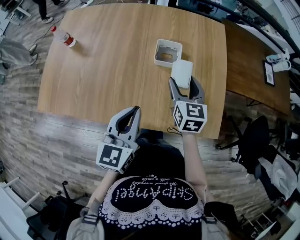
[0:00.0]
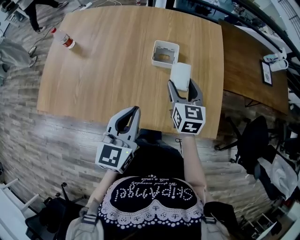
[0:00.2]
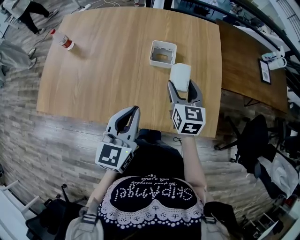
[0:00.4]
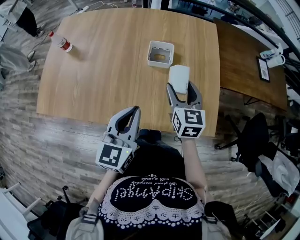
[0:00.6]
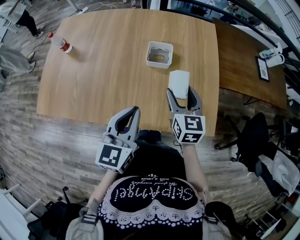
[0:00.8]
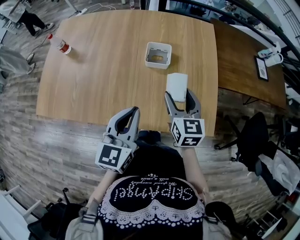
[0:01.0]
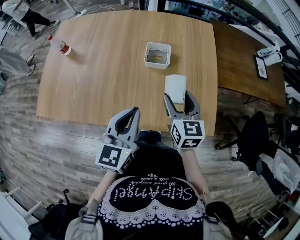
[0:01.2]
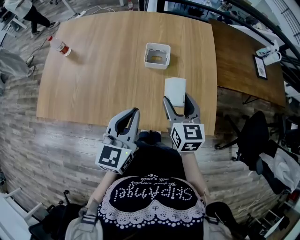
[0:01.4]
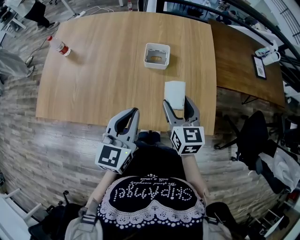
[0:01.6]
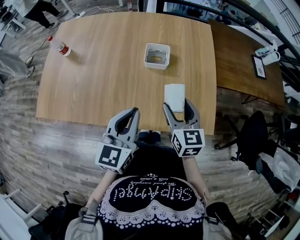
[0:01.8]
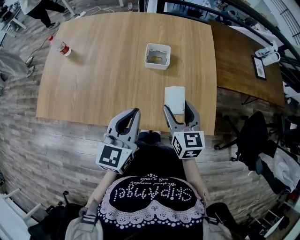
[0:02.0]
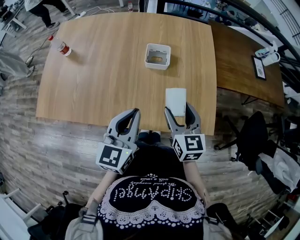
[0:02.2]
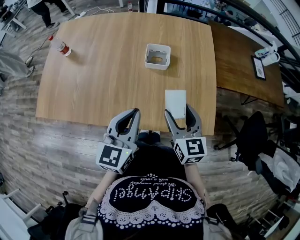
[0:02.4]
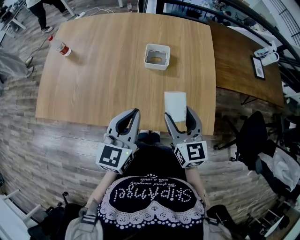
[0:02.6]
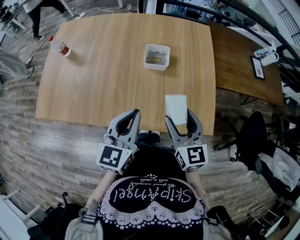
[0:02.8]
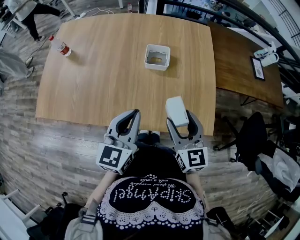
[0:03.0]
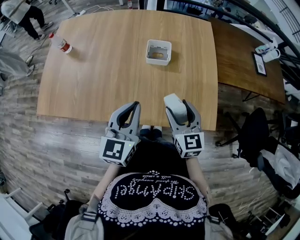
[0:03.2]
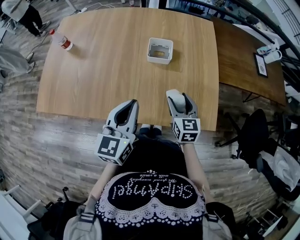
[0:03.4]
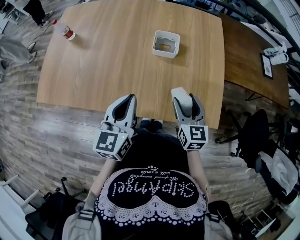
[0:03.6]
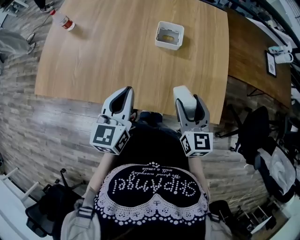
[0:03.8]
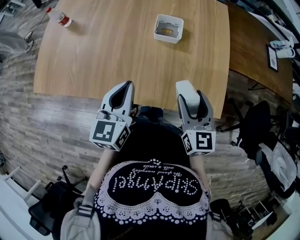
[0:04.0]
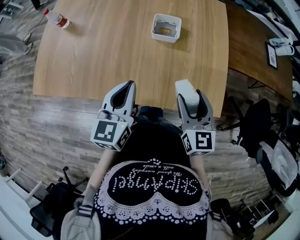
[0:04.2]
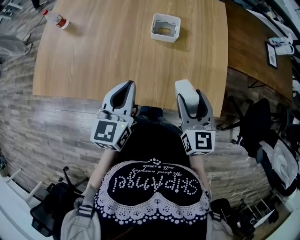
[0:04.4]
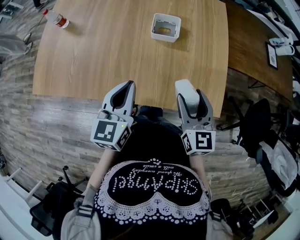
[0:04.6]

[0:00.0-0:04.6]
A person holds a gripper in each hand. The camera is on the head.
0.0 to 1.6 s: The right gripper shifts about 10 cm backward.
1.6 to 3.0 s: The right gripper moves backward, about 5 cm.
3.0 to 4.6 s: The right gripper moves about 10 cm downward and comes back.

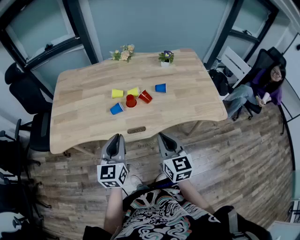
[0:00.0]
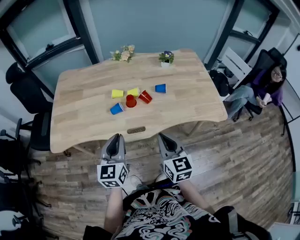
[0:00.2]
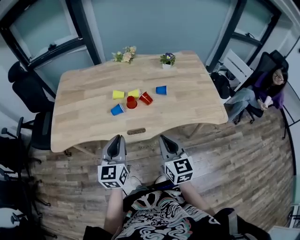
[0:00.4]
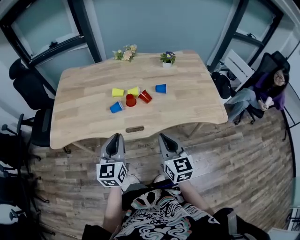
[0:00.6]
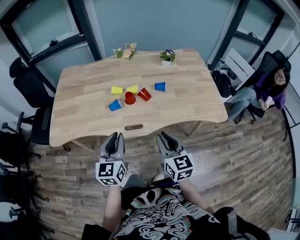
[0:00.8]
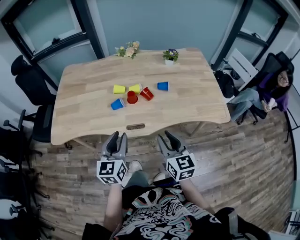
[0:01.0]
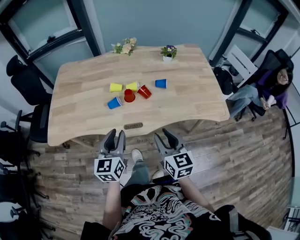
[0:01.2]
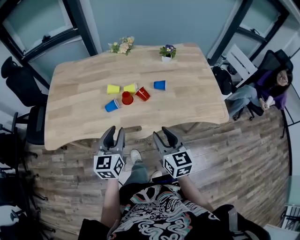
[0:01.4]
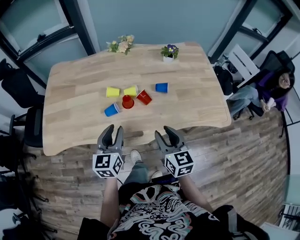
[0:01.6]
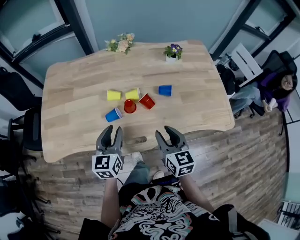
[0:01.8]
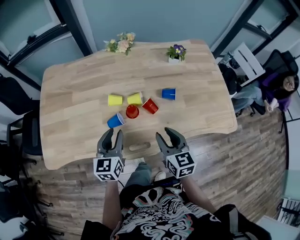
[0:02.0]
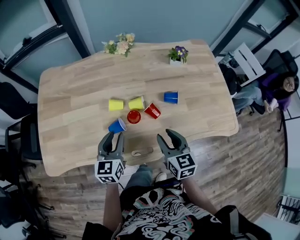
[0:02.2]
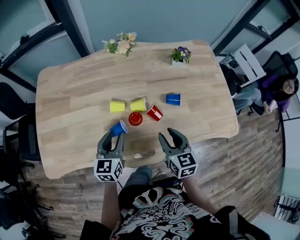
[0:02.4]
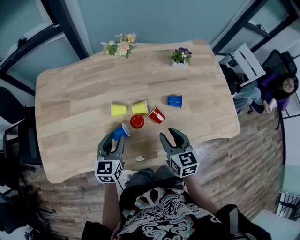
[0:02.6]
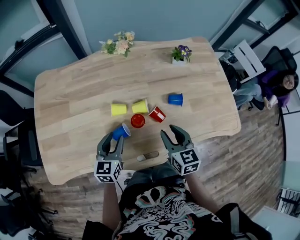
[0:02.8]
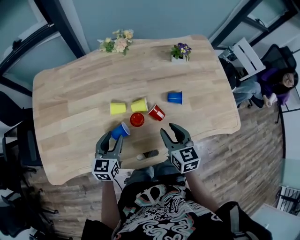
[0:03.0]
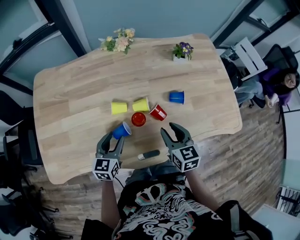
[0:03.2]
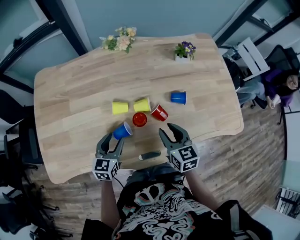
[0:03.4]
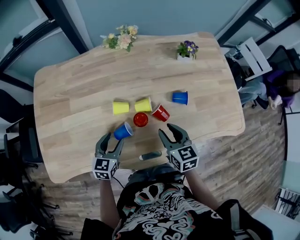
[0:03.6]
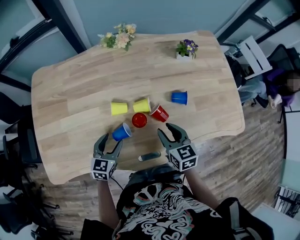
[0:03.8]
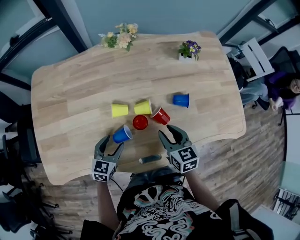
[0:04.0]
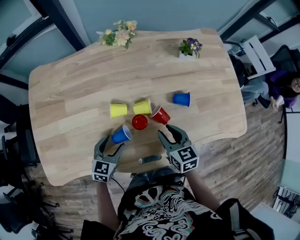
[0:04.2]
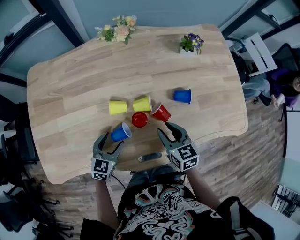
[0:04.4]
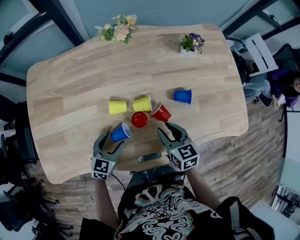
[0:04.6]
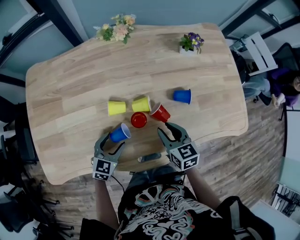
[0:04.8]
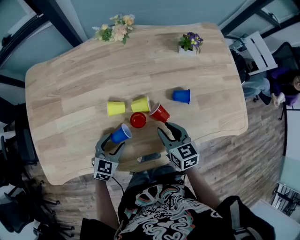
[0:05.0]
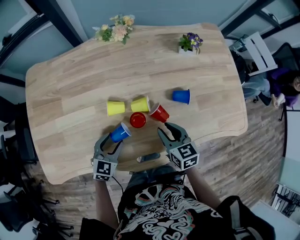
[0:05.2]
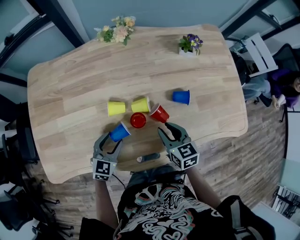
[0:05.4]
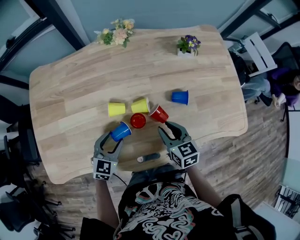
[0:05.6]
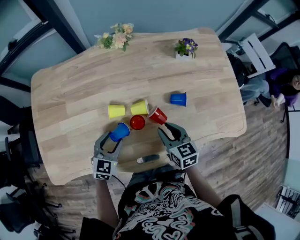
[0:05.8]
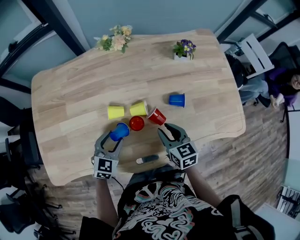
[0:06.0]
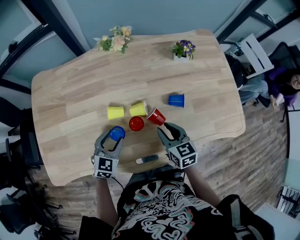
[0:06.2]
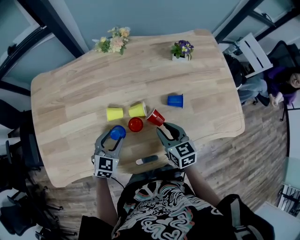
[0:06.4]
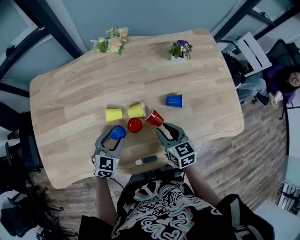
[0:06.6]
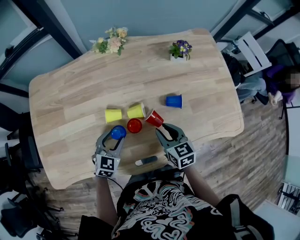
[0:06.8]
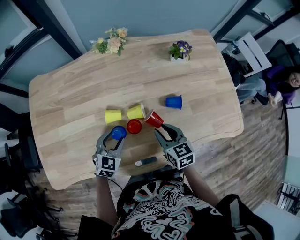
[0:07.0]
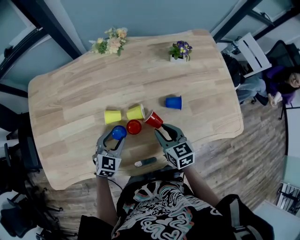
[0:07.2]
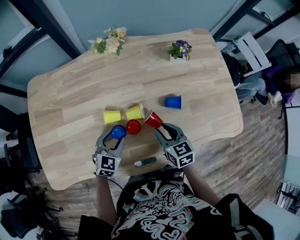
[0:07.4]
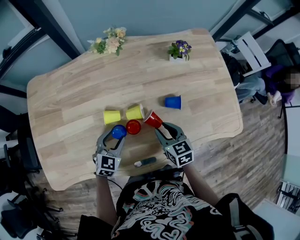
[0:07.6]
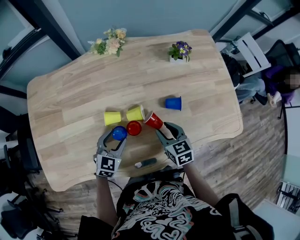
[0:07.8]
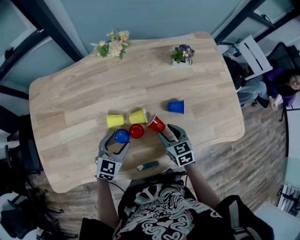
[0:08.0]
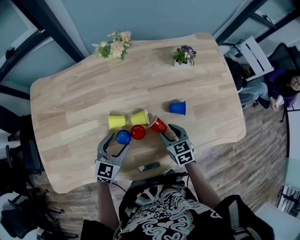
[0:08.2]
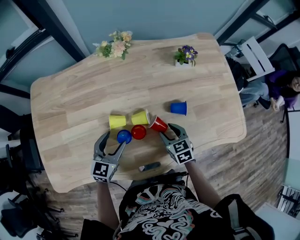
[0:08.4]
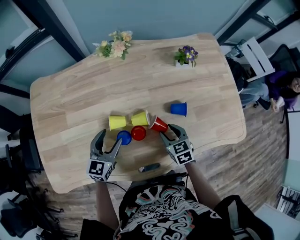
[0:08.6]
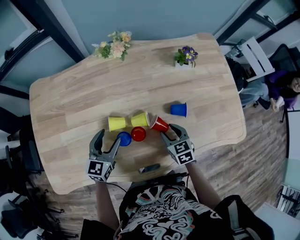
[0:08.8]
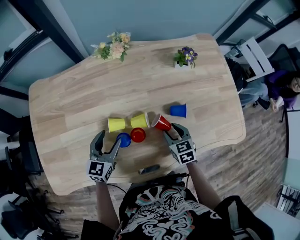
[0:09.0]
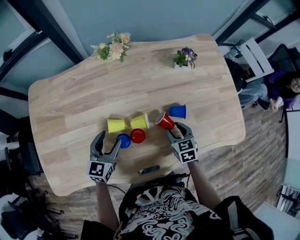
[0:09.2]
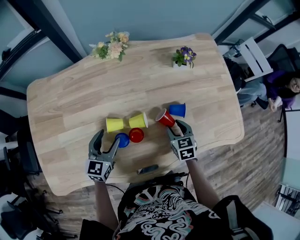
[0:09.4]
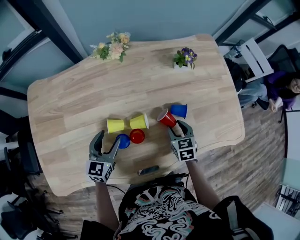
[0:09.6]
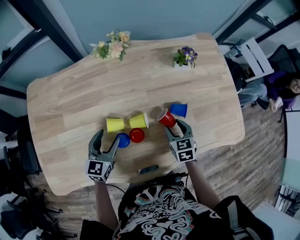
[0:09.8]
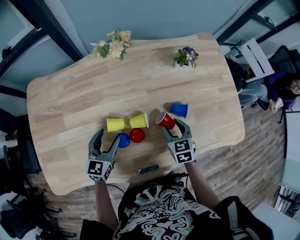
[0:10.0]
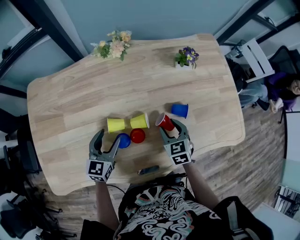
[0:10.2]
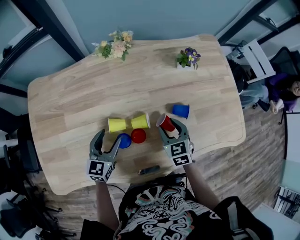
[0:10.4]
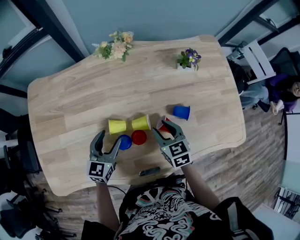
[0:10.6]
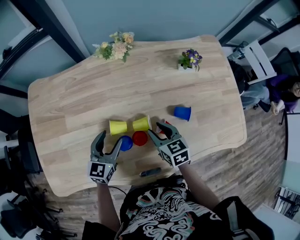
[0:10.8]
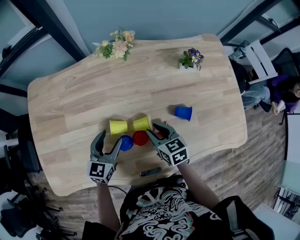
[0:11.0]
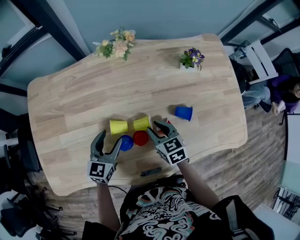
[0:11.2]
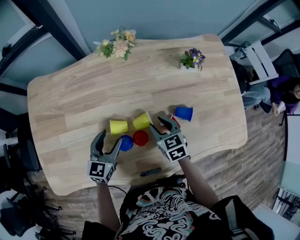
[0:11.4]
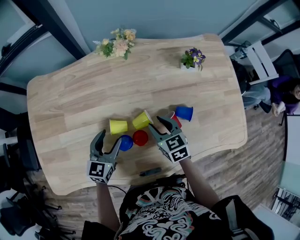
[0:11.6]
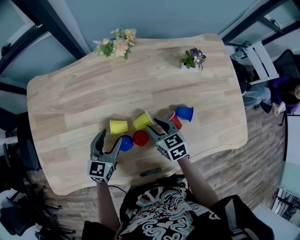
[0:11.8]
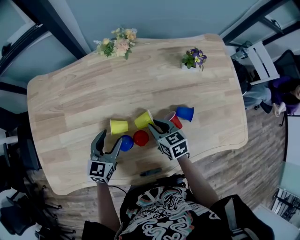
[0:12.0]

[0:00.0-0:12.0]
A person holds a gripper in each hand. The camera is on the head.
0.0 to 1.6 s: The grippers both shift forward by some 10 cm. The left gripper opens; the right gripper opens its fingers.
1.6 to 3.0 s: The right gripper is displaced forward and downward by roughly 15 cm; the left gripper moves forward, downward and to the left, roughly 20 cm.
3.0 to 4.4 s: The grippers both shift downward by roughly 5 cm.
4.4 to 6.0 s: The grippers move only a little.
6.0 to 7.6 s: The grippers move only a little.
7.6 to 9.0 s: The left gripper moves approximately 5 cm, and rotates about 20 degrees. Meanwhile the right gripper shifts approximately 5 cm downward.
9.0 to 10.4 s: The right gripper moves roughly 5 cm.
10.4 to 12.0 s: The right gripper is displaced to the left by roughly 5 cm, changes its angle by some 20 degrees, and closes its fingers.

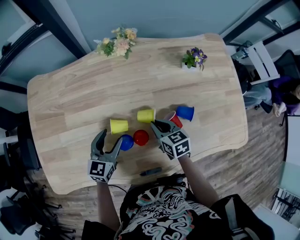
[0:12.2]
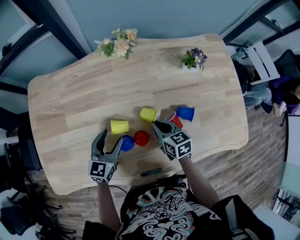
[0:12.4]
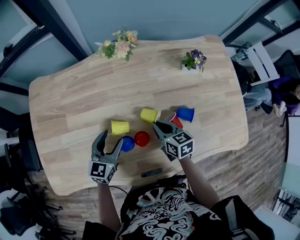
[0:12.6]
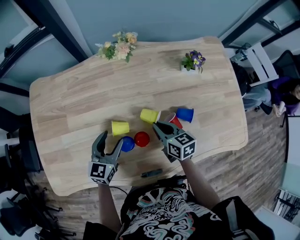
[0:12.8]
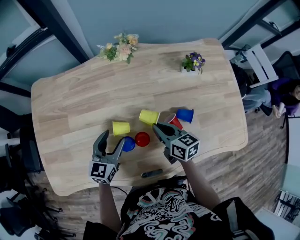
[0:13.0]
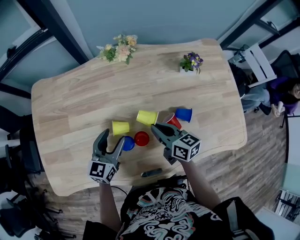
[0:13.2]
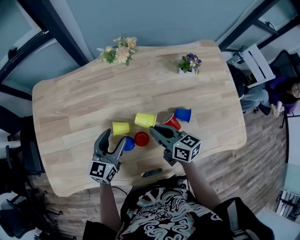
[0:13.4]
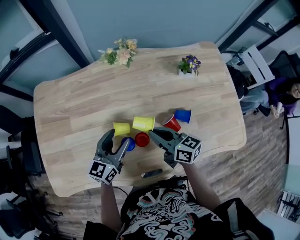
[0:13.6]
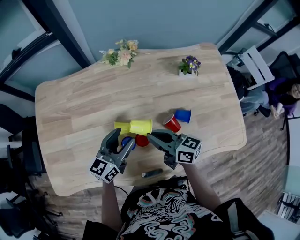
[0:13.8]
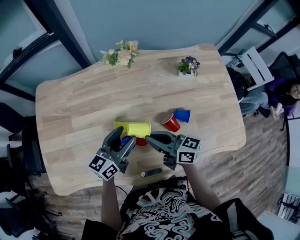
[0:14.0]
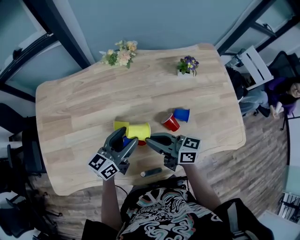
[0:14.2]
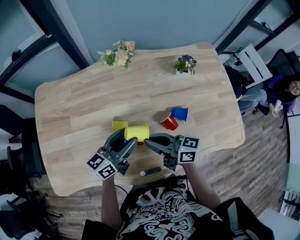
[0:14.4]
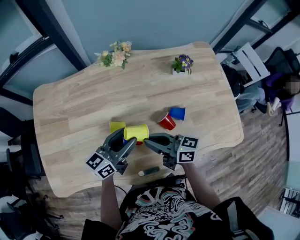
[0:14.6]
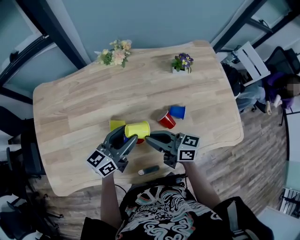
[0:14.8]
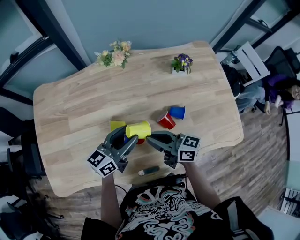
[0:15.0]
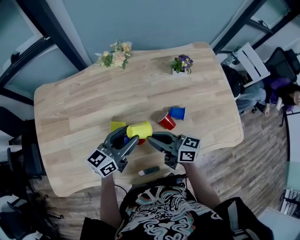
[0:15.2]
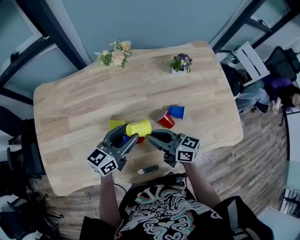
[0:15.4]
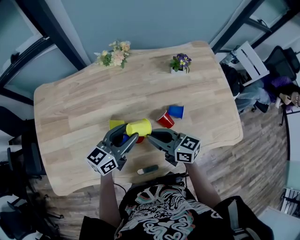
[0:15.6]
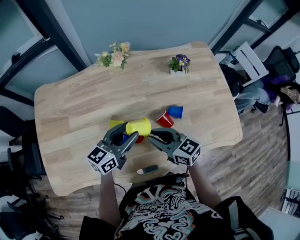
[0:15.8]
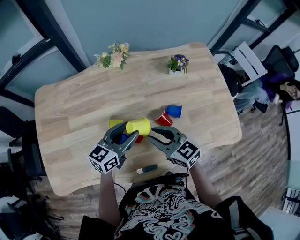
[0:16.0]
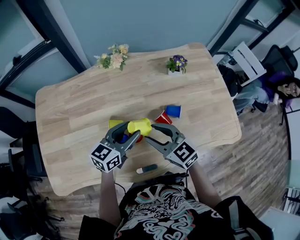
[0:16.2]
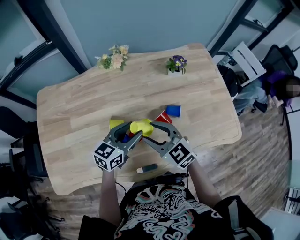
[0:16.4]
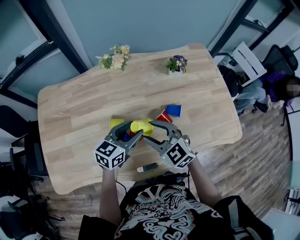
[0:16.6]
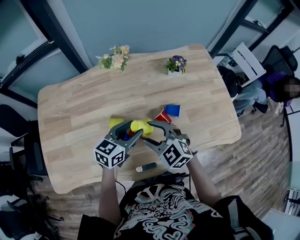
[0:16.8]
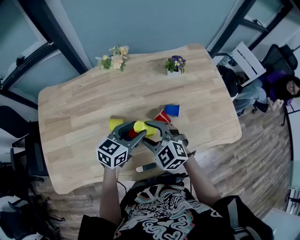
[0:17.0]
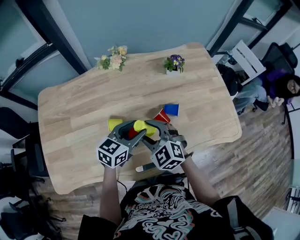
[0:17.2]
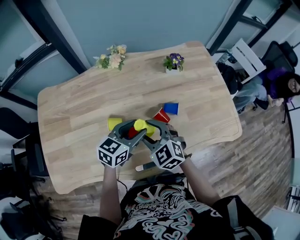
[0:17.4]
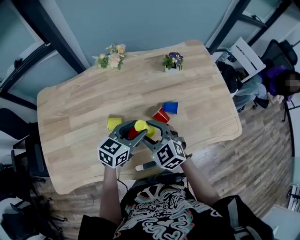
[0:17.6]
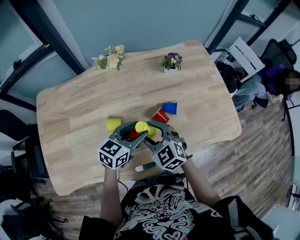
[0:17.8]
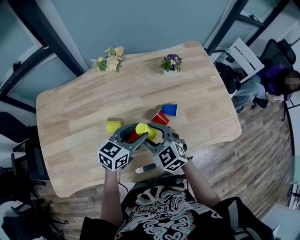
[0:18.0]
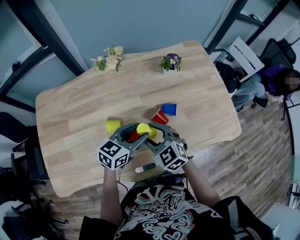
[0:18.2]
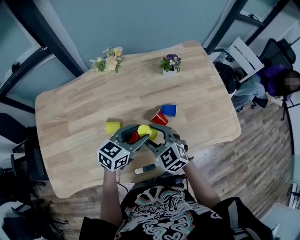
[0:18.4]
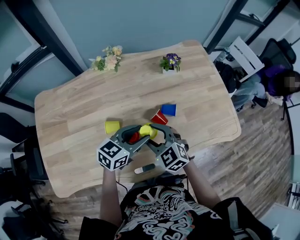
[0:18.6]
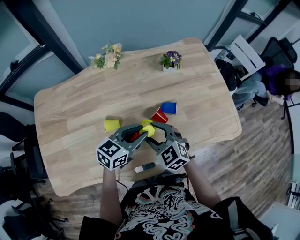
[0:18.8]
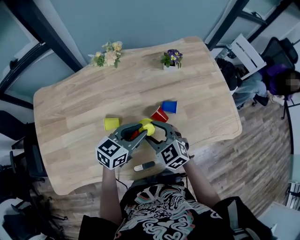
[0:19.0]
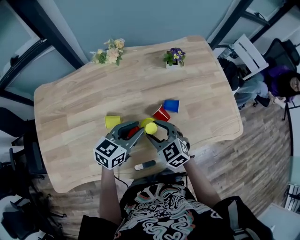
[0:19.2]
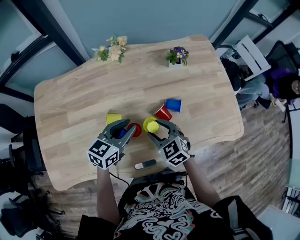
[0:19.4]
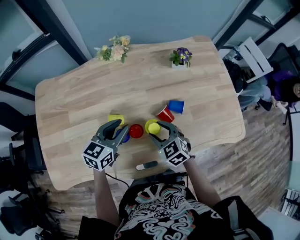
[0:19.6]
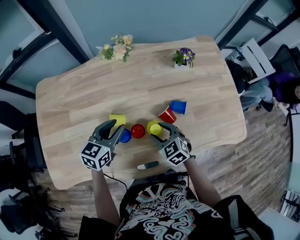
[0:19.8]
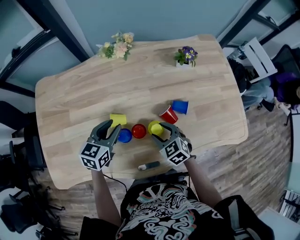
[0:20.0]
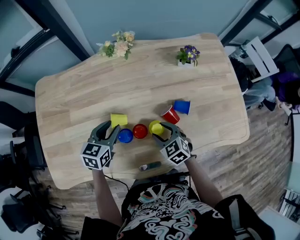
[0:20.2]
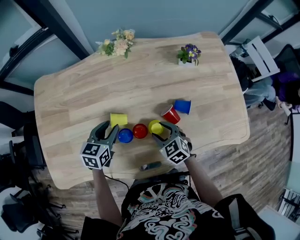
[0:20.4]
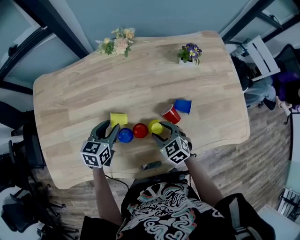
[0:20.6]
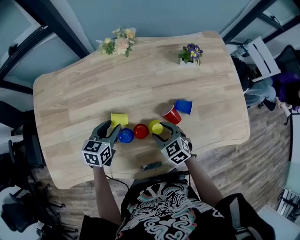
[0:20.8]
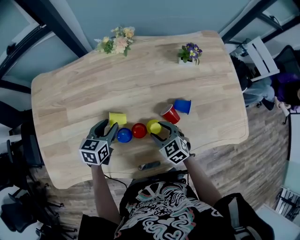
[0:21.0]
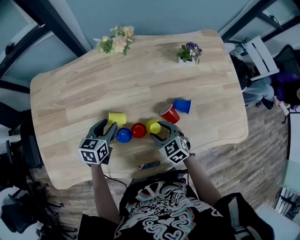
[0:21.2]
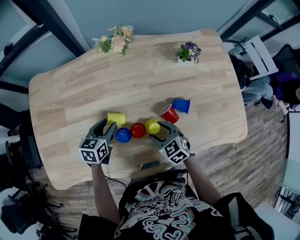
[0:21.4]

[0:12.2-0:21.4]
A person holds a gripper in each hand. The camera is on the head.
12.2 to 13.8 s: Both grippers move upward, approximately 10 cm. The right gripper angles its fingers upward, by approximately 30 degrees, while the left gripper rotates approximately 20 degrees.
13.8 to 15.2 s: The left gripper changes place by approximately 5 cm.
15.2 to 16.8 s: The right gripper twists some 60 degrees counterclockwise, seen from behind, and opens its fingers.
16.8 to 18.4 s: The grippers stay close to where they were, moving slightly.
18.4 to 19.8 s: The left gripper heads to the left, covering about 15 cm; the right gripper shifts some 10 cm downward.
19.8 to 21.4 s: The left gripper travels downward and to the left by some 10 cm.
